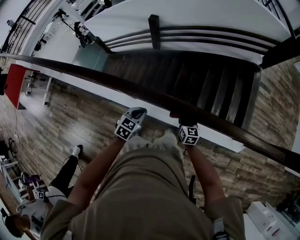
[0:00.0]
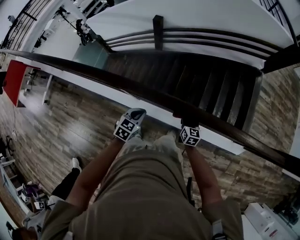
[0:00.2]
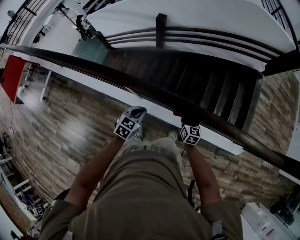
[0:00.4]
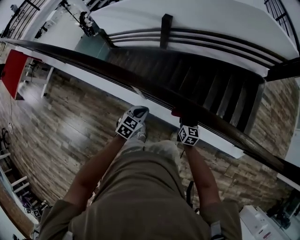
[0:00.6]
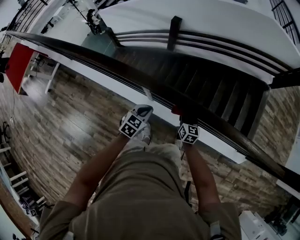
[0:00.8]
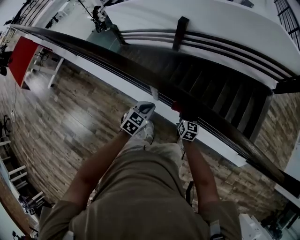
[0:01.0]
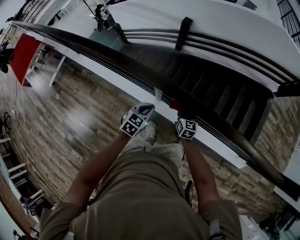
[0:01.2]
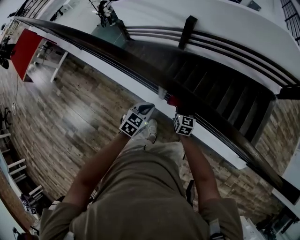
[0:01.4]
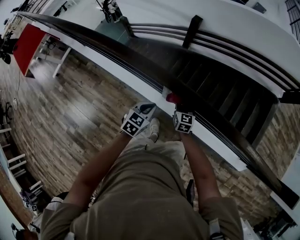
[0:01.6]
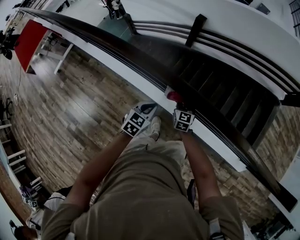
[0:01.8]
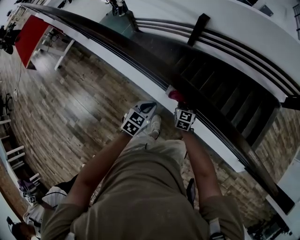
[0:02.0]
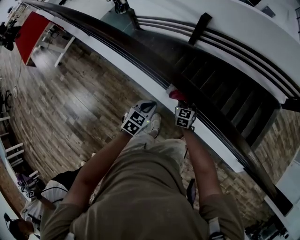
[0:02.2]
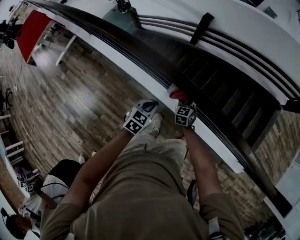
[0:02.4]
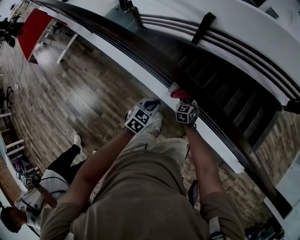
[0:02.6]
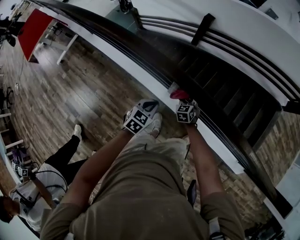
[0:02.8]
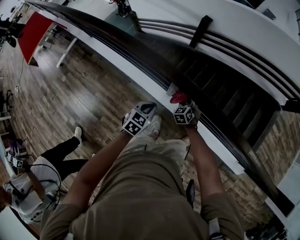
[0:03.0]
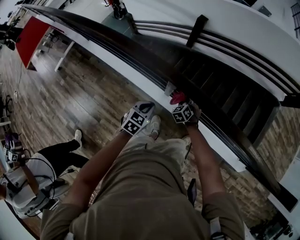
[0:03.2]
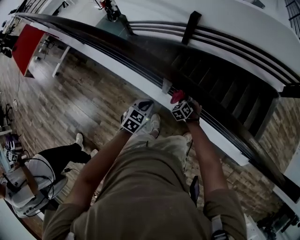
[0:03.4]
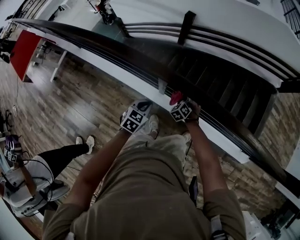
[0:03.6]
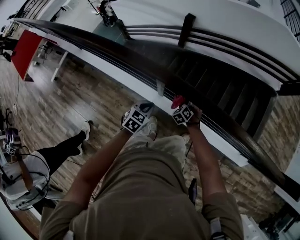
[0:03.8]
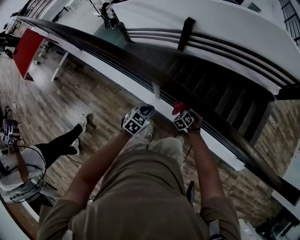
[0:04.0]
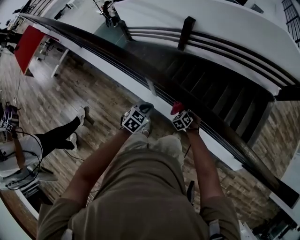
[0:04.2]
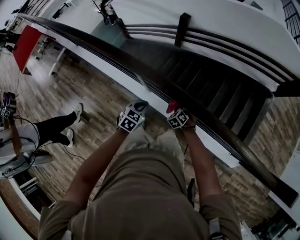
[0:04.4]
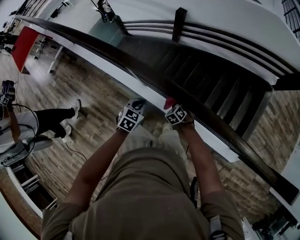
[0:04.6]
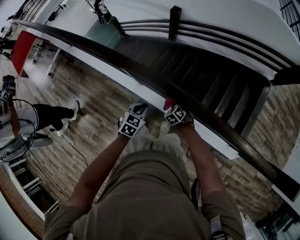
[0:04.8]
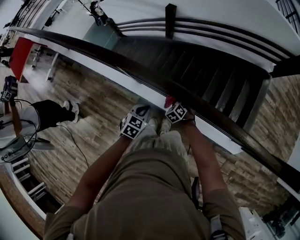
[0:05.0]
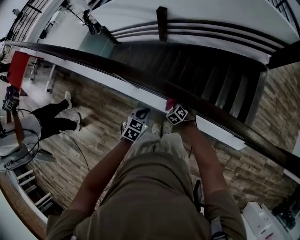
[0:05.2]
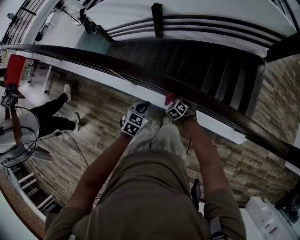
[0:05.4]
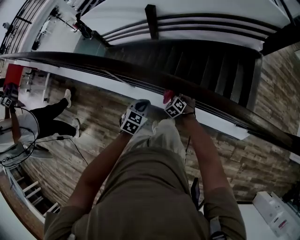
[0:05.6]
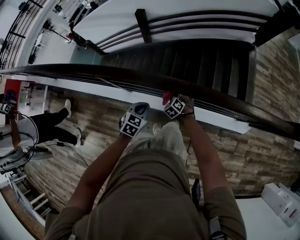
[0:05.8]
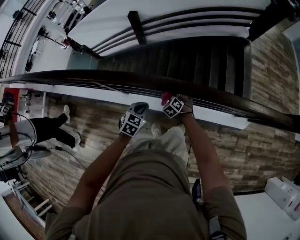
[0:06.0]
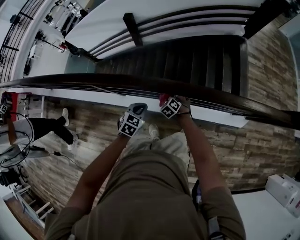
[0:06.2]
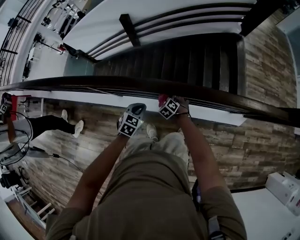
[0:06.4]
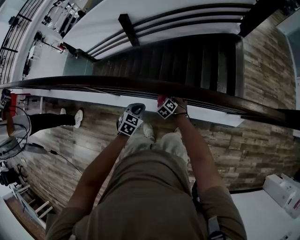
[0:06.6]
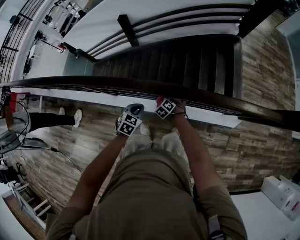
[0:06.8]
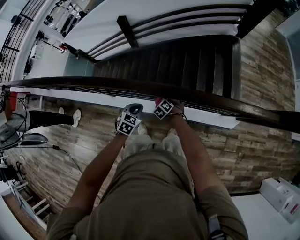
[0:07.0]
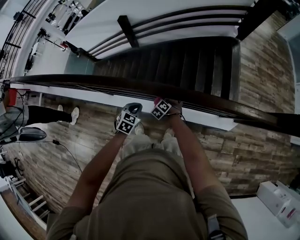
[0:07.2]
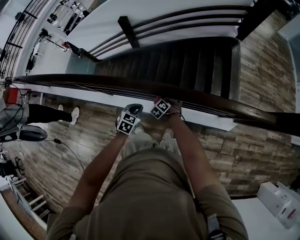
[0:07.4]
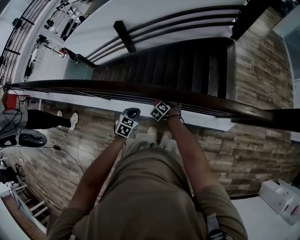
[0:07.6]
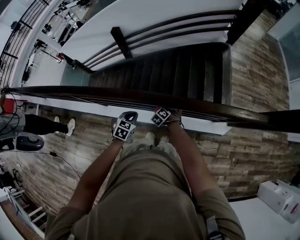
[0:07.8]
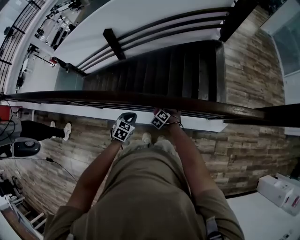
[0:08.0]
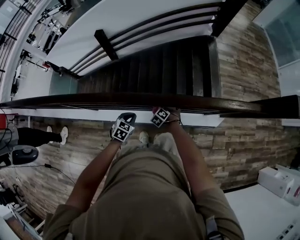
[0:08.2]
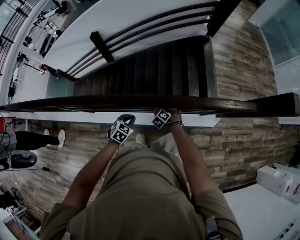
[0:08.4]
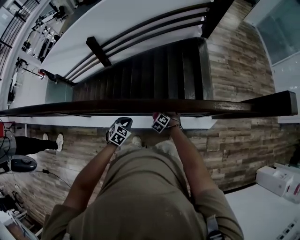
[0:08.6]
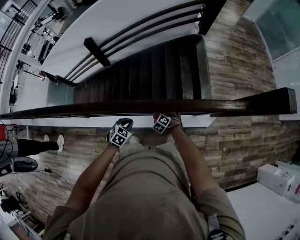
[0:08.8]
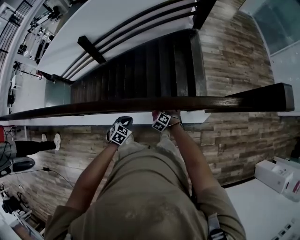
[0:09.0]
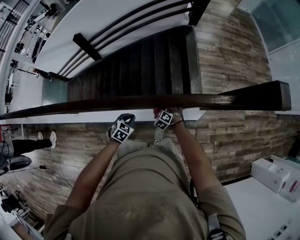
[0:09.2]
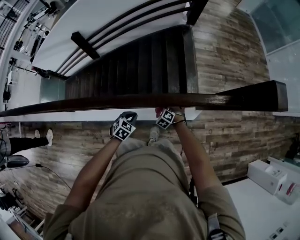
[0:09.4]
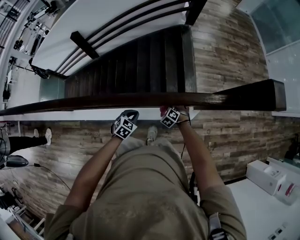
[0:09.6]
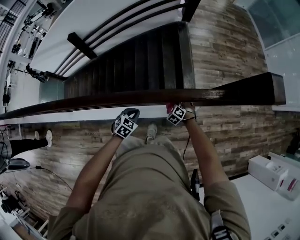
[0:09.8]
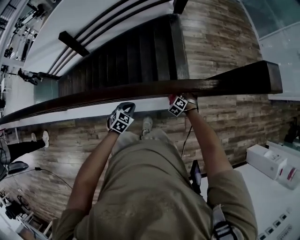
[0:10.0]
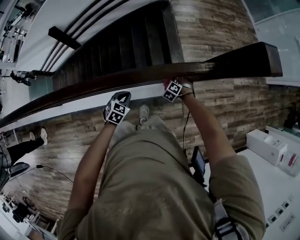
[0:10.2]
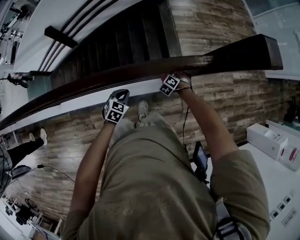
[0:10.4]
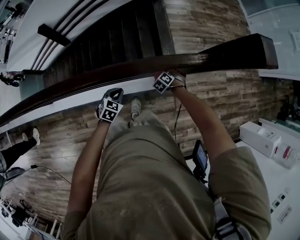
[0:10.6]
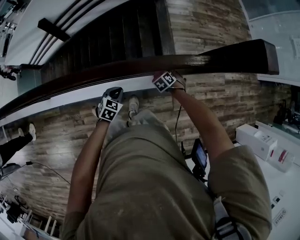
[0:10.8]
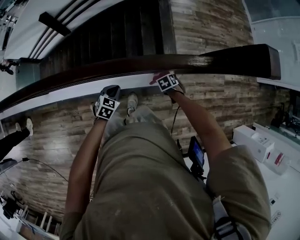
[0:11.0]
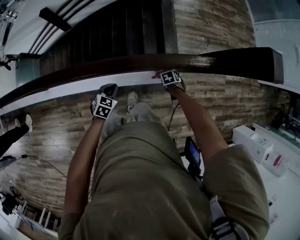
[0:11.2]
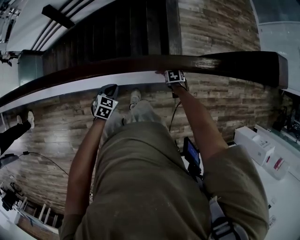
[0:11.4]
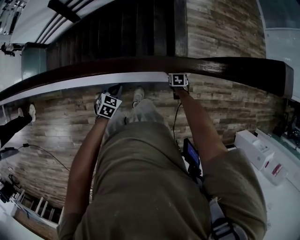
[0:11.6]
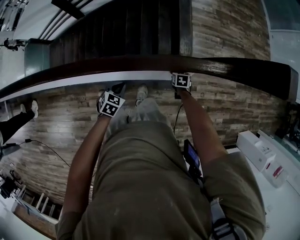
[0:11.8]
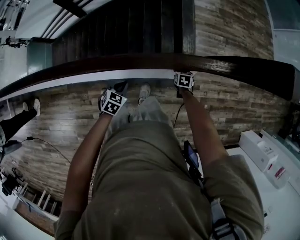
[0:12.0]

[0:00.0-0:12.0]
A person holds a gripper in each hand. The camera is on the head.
0:00.0 to 0:01.6: Both grippers move to the left, about 40 cm.
0:01.6 to 0:03.0: The right gripper shifts approximately 10 cm downward, and turns by approximately 40 degrees; the left gripper shifts by about 5 cm.
0:03.0 to 0:04.4: Both grippers move to the right, about 25 cm.
0:04.4 to 0:06.0: The grippers both shift to the right by approximately 25 cm.
0:06.0 to 0:07.6: The grippers both shift to the right by roughly 25 cm.
0:07.6 to 0:09.0: The two grippers go about 25 cm to the right.
0:09.0 to 0:10.4: The grippers both shift to the right and forward by approximately 30 cm.
0:10.4 to 0:12.0: The left gripper ends up roughly 10 cm from where it was, while the right gripper shifts about 5 cm downward, and rotates around the line of its fingers by roughly 60 degrees, clockwise from behind.

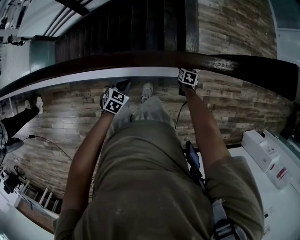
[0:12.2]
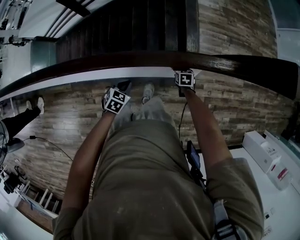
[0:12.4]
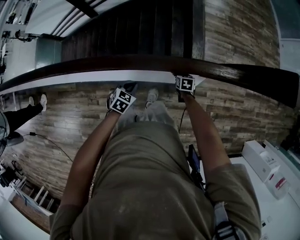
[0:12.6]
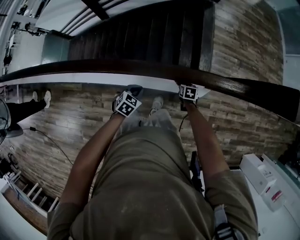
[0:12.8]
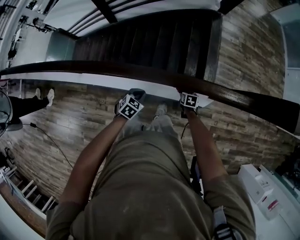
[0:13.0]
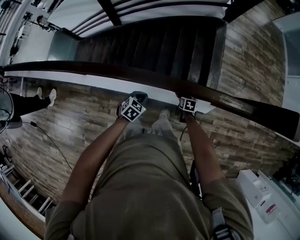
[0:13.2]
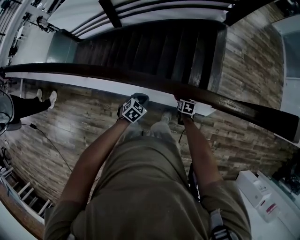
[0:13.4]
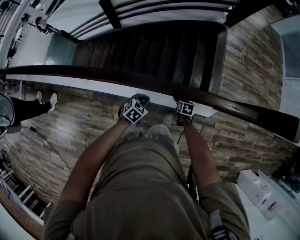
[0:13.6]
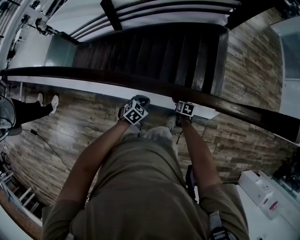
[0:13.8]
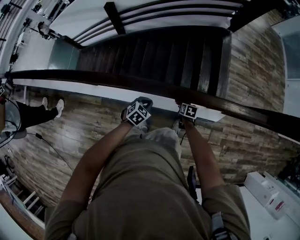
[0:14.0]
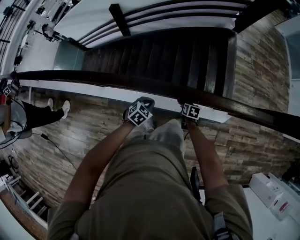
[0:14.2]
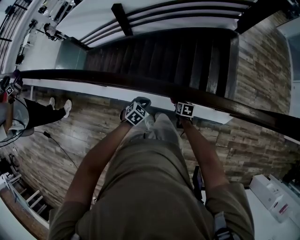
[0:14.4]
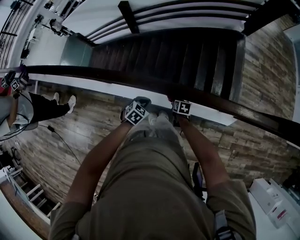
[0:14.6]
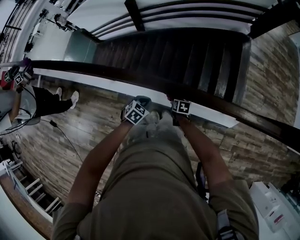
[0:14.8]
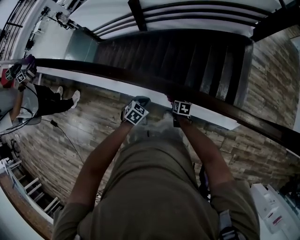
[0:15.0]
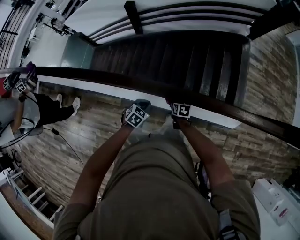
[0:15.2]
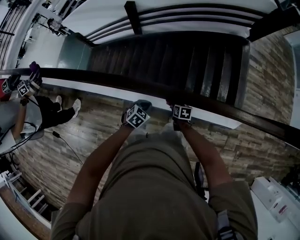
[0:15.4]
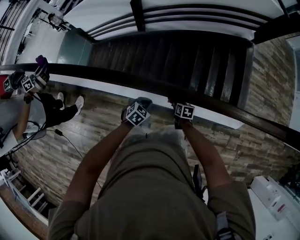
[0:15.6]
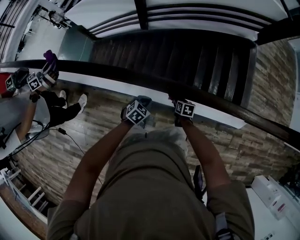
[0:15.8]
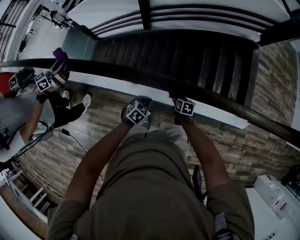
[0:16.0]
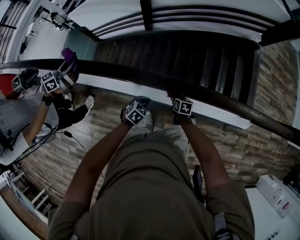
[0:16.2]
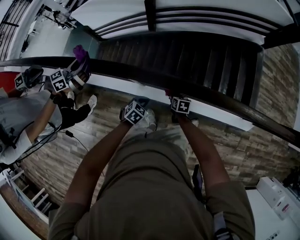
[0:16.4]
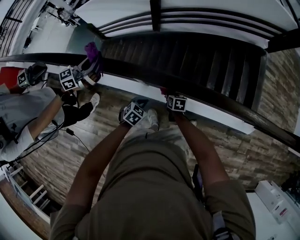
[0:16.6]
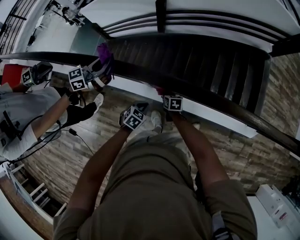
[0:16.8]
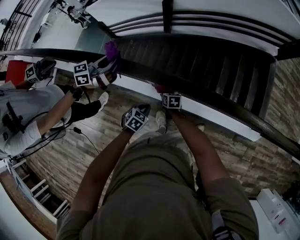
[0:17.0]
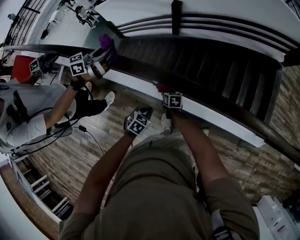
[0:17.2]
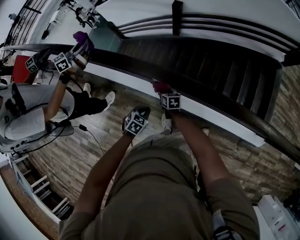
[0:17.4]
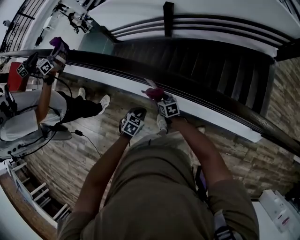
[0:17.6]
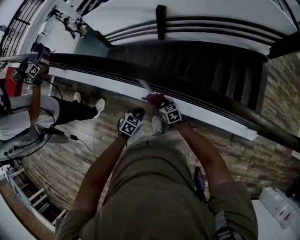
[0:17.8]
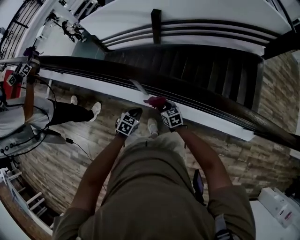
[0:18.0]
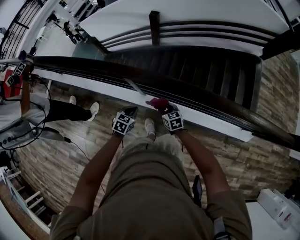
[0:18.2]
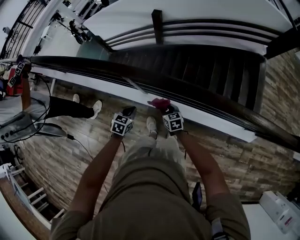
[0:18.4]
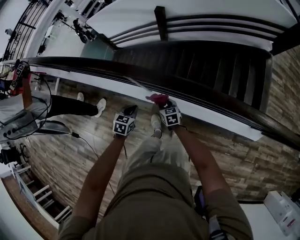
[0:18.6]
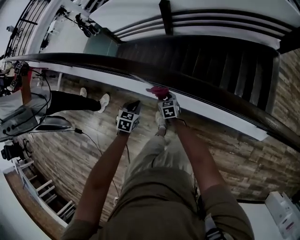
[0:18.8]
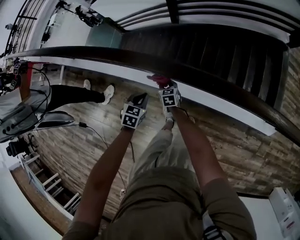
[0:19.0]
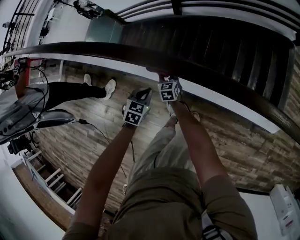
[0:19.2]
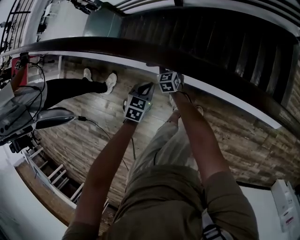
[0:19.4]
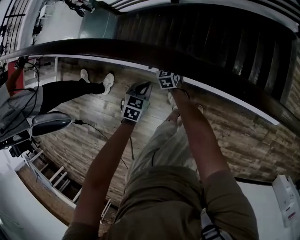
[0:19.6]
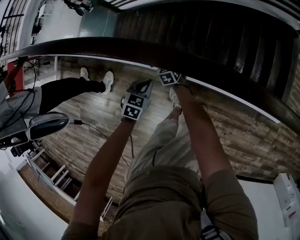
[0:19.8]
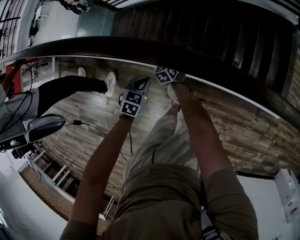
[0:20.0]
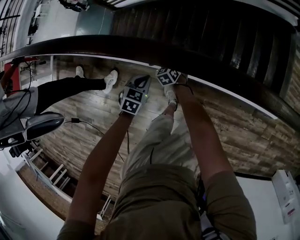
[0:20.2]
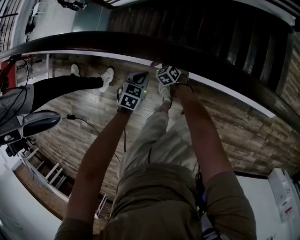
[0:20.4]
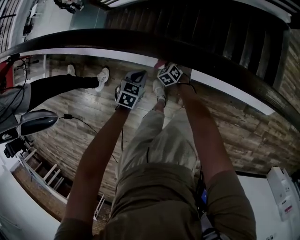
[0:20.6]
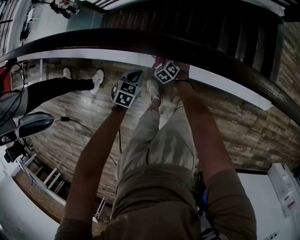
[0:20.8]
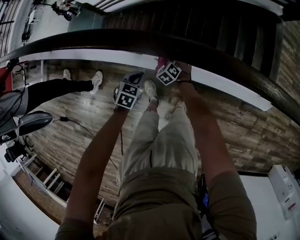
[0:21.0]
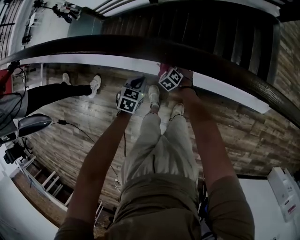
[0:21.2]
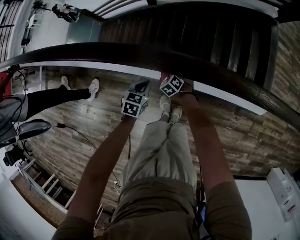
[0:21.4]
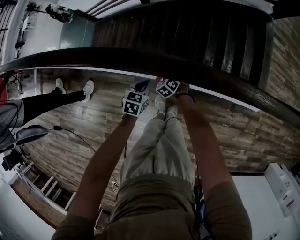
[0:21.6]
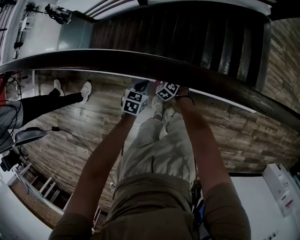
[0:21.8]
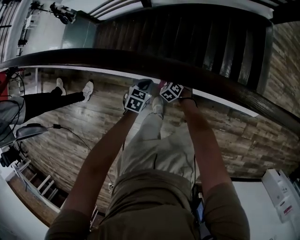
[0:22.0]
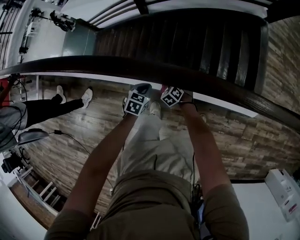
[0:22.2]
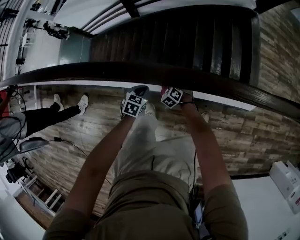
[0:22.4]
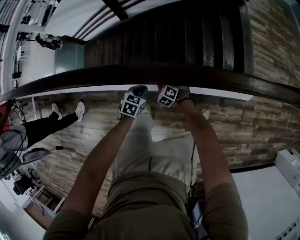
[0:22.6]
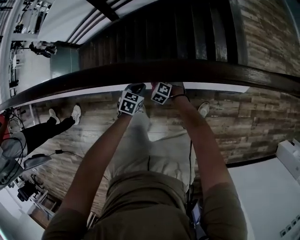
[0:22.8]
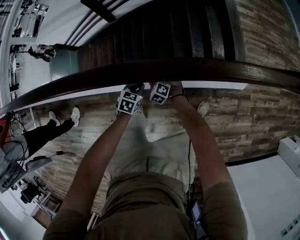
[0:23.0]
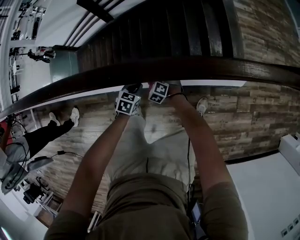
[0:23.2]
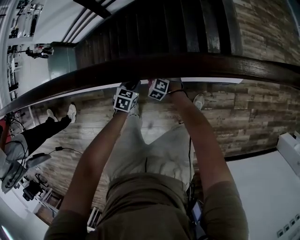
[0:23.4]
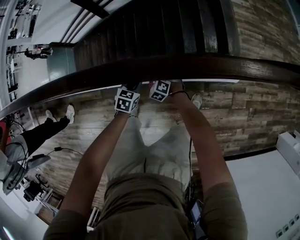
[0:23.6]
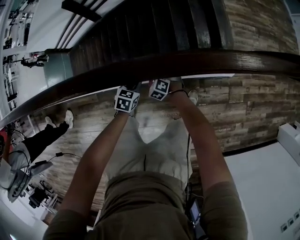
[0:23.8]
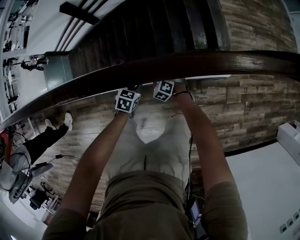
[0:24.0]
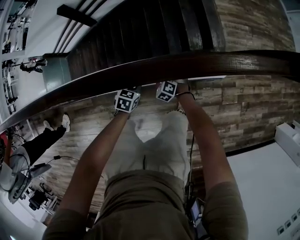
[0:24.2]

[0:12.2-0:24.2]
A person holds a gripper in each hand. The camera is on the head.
0:12.2 to 0:13.8: The two grippers go about 35 cm to the left.
0:13.8 to 0:15.2: The two grippers go about 30 cm to the left.
0:15.2 to 0:16.6: The pair of grippers is taken to the left, approximately 40 cm.
0:16.6 to 0:18.2: The left gripper goes to the left and returns, about 10 cm each way. The right gripper shifts about 15 cm upward and backward, travels to the left and back again, some 20 cm each way, and swivels about 30 degrees.
0:18.2 to 0:19.8: The right gripper moves downward, forward and to the left, some 35 cm. The left gripper moves downward and forward, about 15 cm.
0:19.8 to 0:21.2: The grippers both shift to the right by about 25 cm. The right gripper changes its angle by approximately 30 degrees.
0:21.2 to 0:22.6: The grippers both shift to the right by roughly 25 cm.
0:22.6 to 0:24.2: Both grippers move to the right, some 40 cm.
